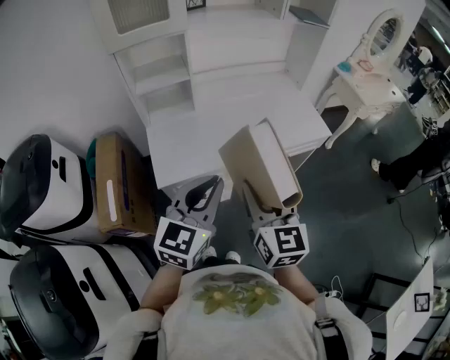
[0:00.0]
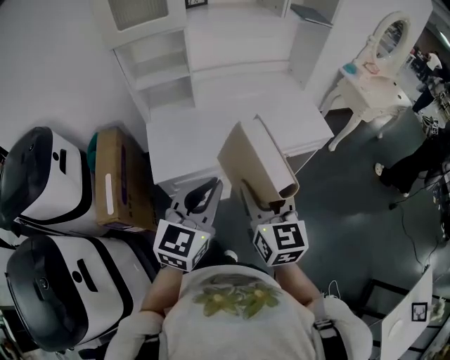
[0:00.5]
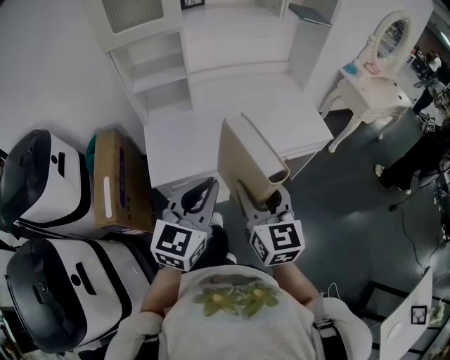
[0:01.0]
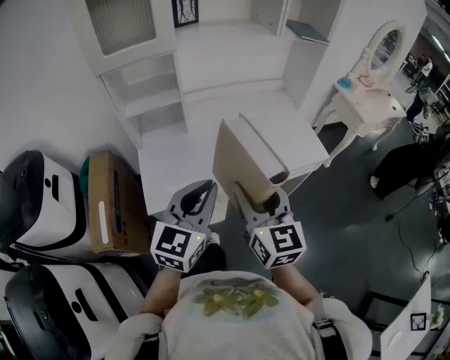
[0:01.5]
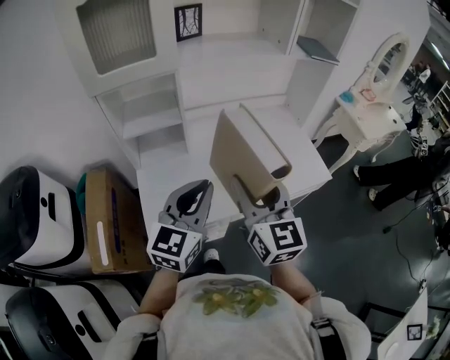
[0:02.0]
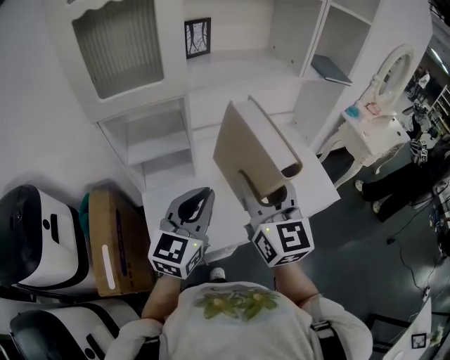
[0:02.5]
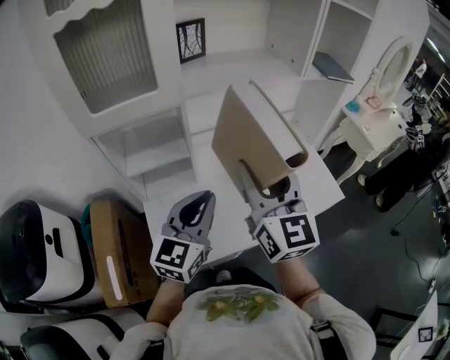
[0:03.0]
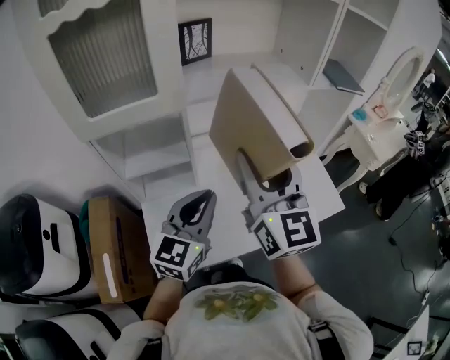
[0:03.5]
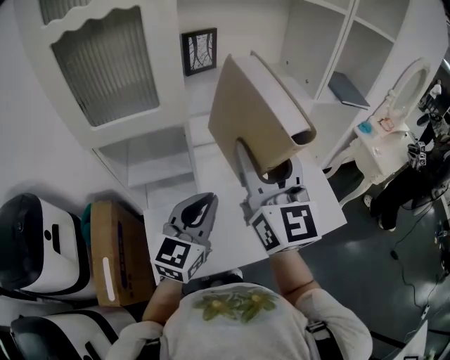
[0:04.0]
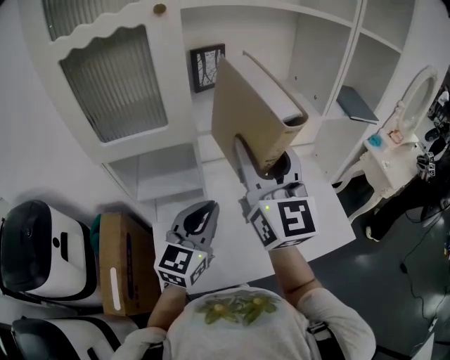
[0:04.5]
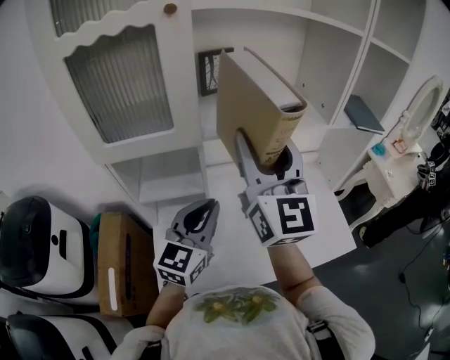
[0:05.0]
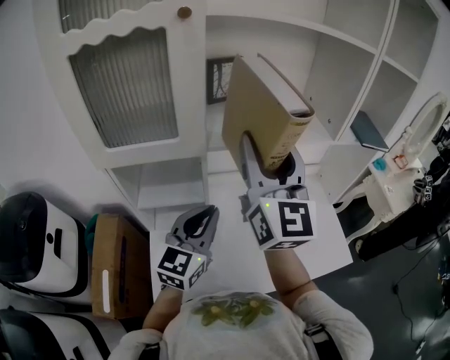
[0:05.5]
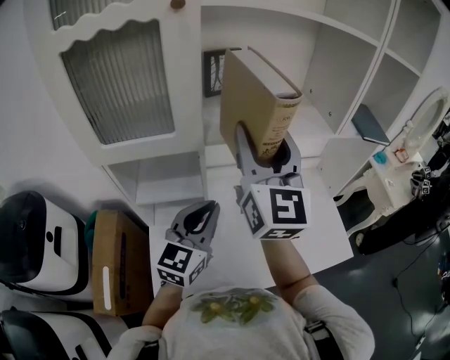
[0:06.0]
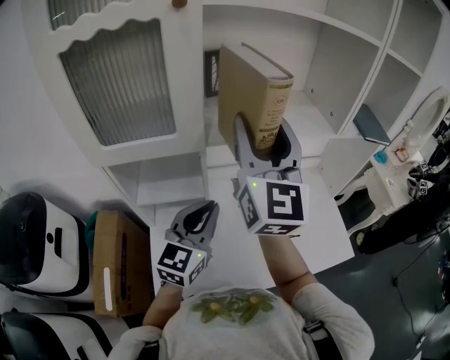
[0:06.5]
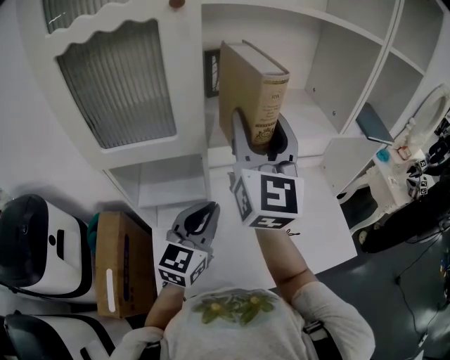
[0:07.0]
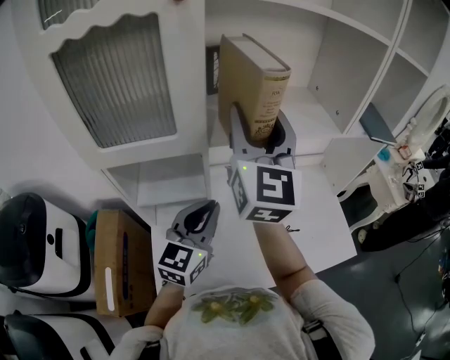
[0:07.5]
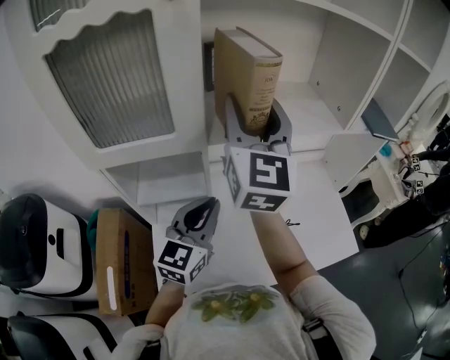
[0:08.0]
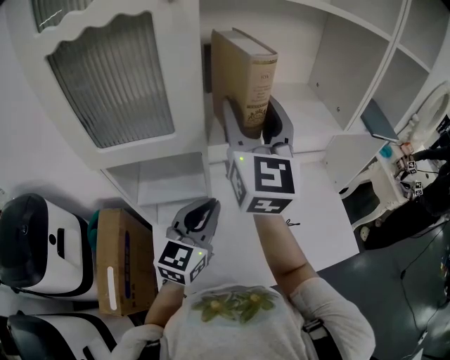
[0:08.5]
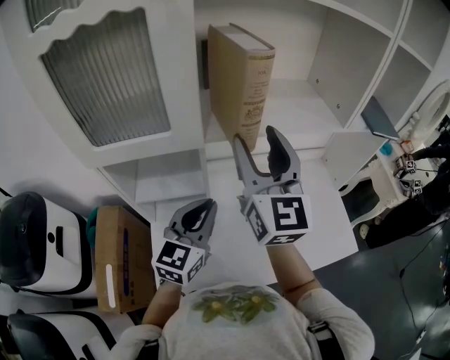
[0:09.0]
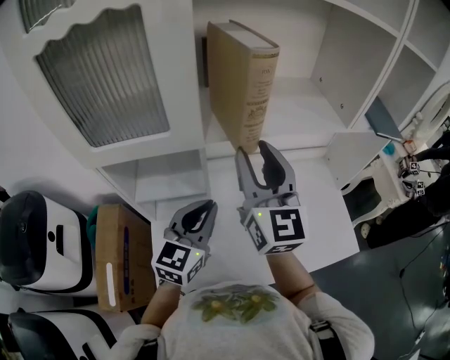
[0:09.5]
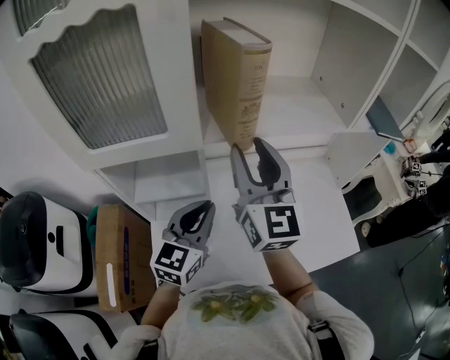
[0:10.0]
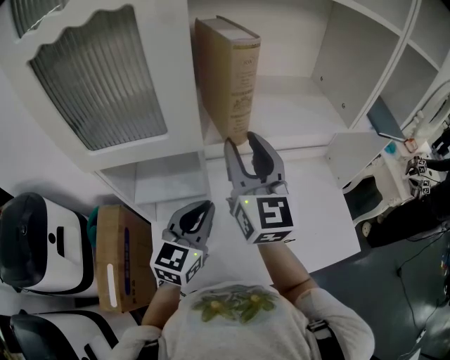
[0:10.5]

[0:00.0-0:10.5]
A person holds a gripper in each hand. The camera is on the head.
0:00.0 to 0:02.0: The grippers both shift forward by approximately 20 cm.
0:02.0 to 0:04.0: The left gripper heads forward, covering approximately 15 cm. The right gripper heads forward and upward, covering some 25 cm.
0:04.0 to 0:06.5: The two grippers go approximately 10 cm forward.
0:06.5 to 0:08.5: The right gripper shifts by some 5 cm.
0:08.5 to 0:10.5: The right gripper travels downward by about 10 cm.

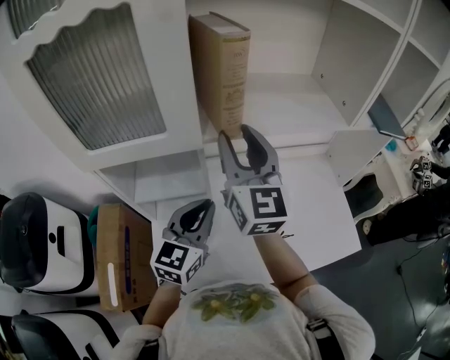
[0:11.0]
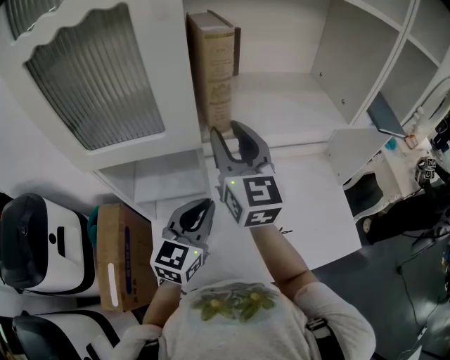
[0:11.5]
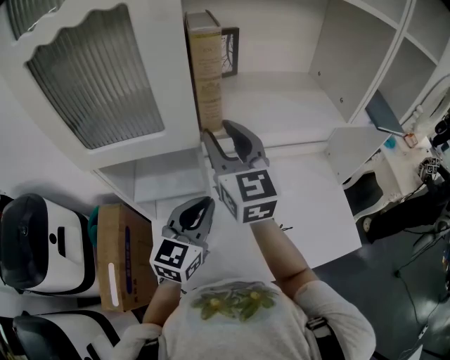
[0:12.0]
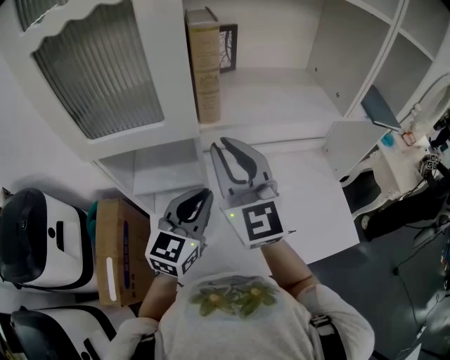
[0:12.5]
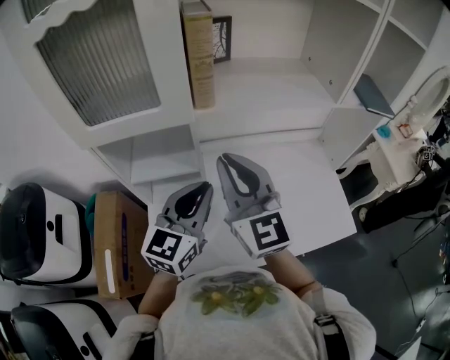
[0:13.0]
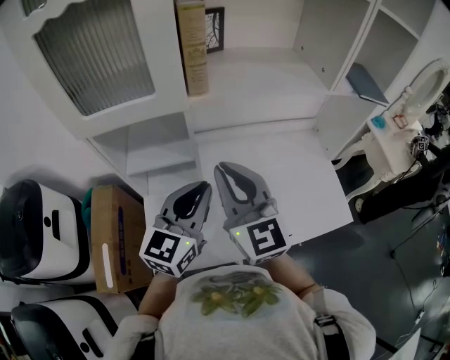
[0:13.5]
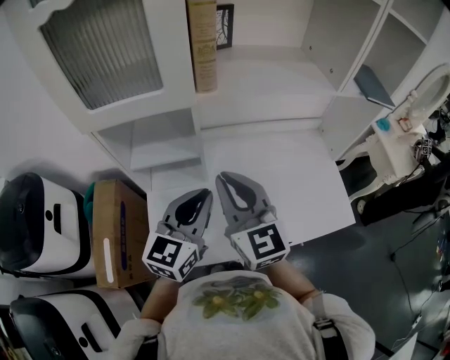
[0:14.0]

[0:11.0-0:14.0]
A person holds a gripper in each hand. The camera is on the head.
0:11.0 to 0:12.5: The right gripper heads backward, covering roughly 5 cm, and closes up.
0:12.5 to 0:14.0: The left gripper is displaced backward by about 10 cm. Meanwhile the right gripper moves backward and downward, some 15 cm.

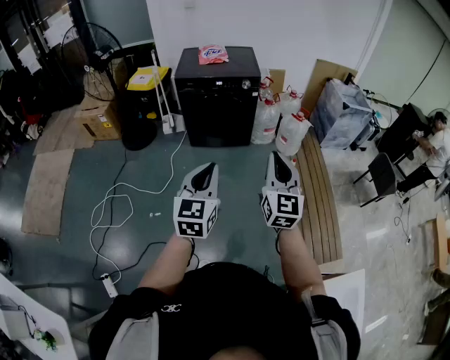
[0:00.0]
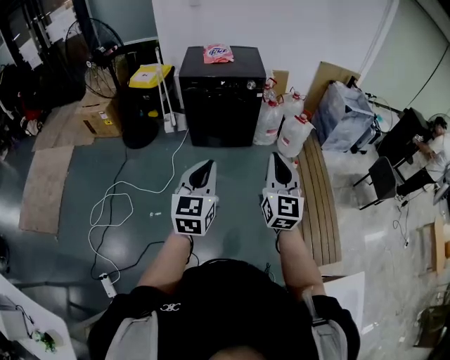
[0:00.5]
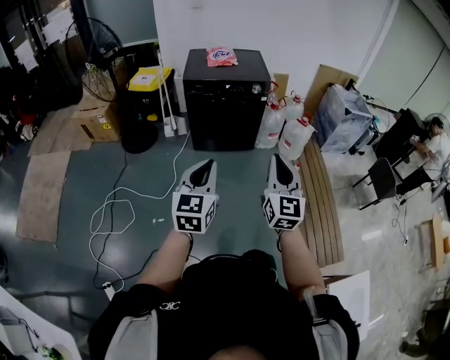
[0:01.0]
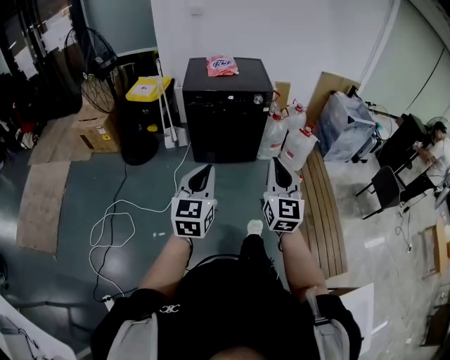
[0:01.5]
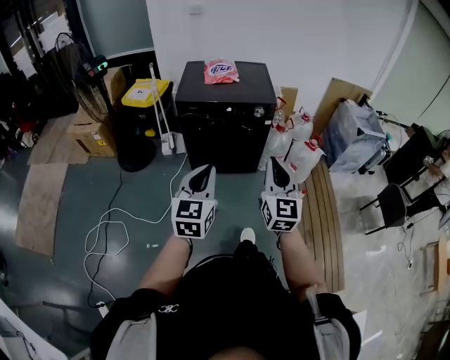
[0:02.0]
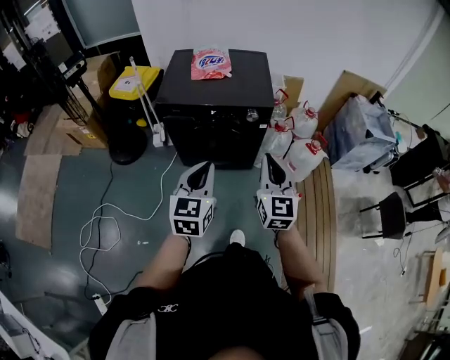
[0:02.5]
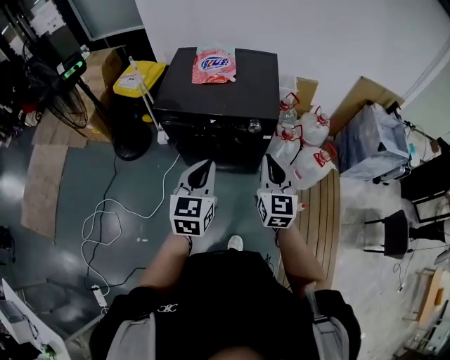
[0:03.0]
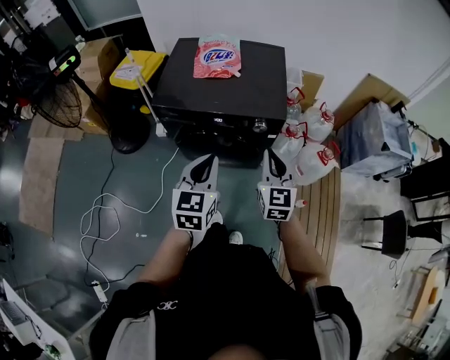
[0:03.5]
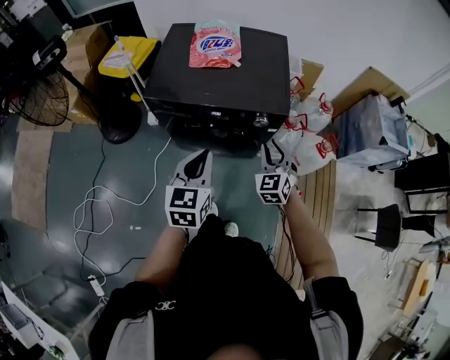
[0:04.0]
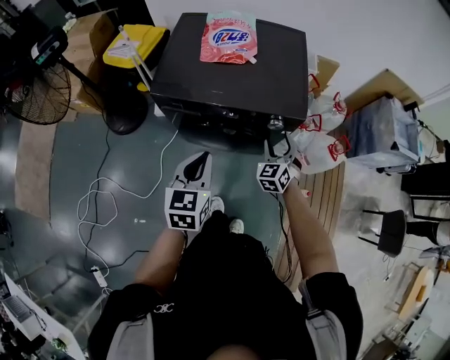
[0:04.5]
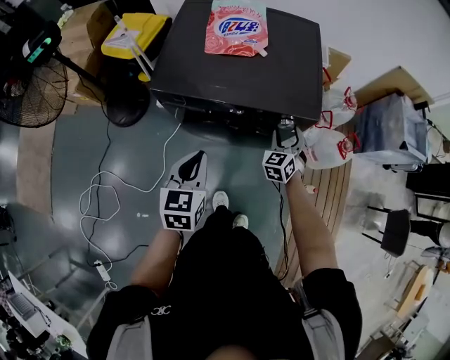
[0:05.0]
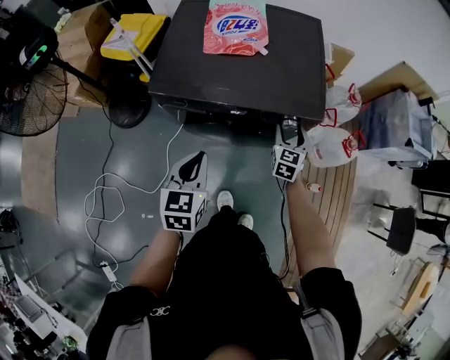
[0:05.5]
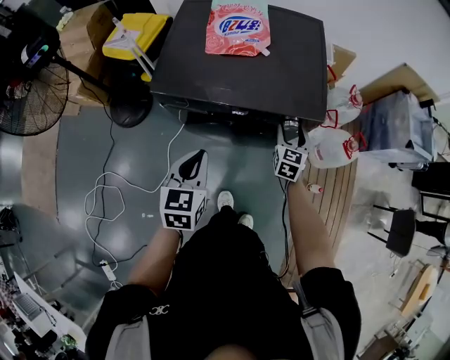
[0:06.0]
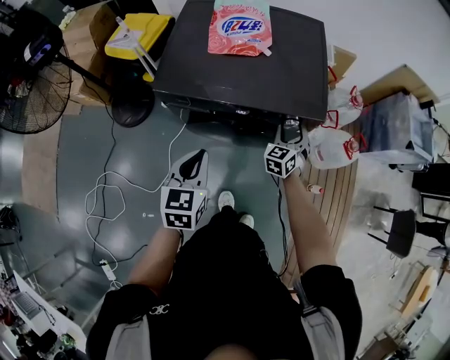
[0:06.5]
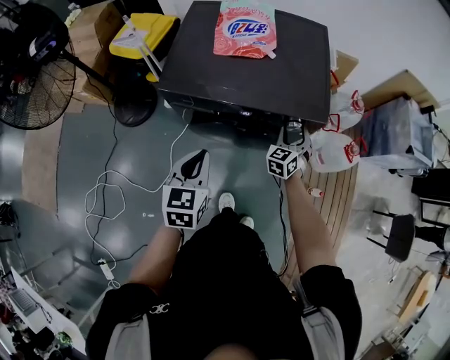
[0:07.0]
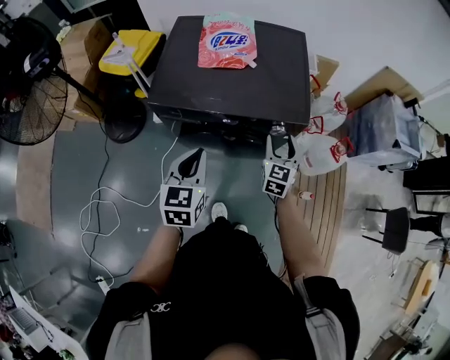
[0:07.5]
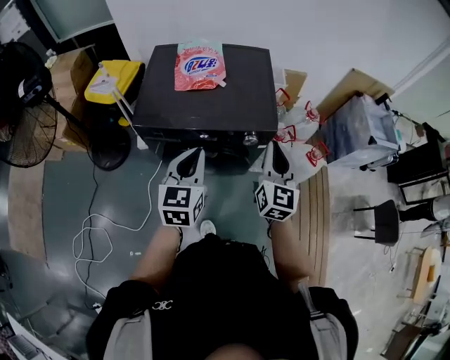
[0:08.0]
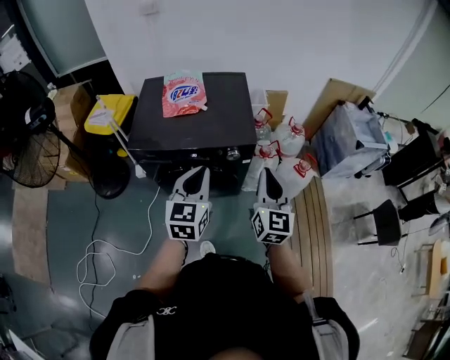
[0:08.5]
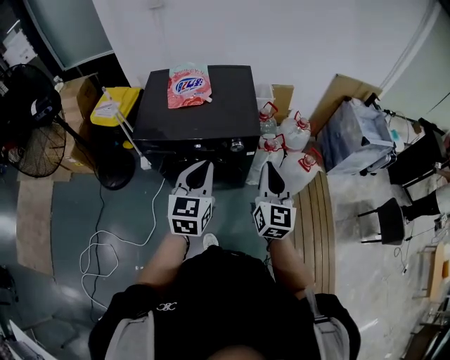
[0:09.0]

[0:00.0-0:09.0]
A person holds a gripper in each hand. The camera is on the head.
0:00.0 to 0:02.0: Both grippers travel together forward, roughly 25 cm.
0:02.0 to 0:04.5: The left gripper is displaced forward by roughly 40 cm, and rotates approximately 20 degrees. Meanwhile the right gripper is displaced forward and downward by roughly 60 cm, angles its fingers downward, by roughly 30 degrees, and opens up.
0:04.5 to 0:07.0: The right gripper goes some 10 cm forward and downward. The left gripper travels to the left by roughly 5 cm.
0:07.0 to 0:09.0: The right gripper shifts some 35 cm upward and backward, rotates approximately 40 degrees, and closes up, while the left gripper shifts about 20 cm to the right and upward, and changes its angle by some 20 degrees.

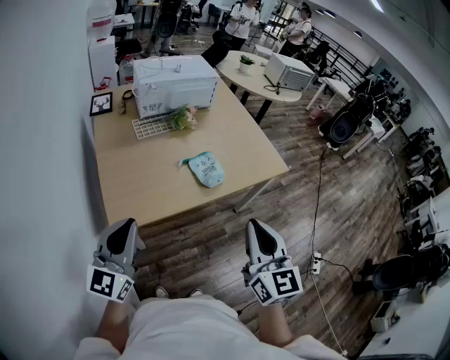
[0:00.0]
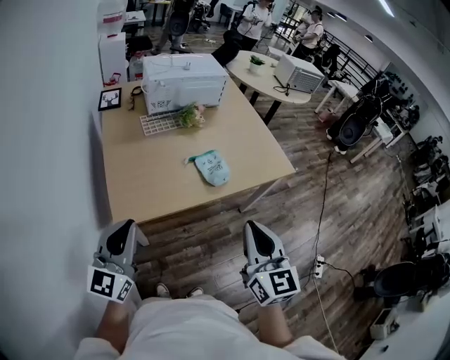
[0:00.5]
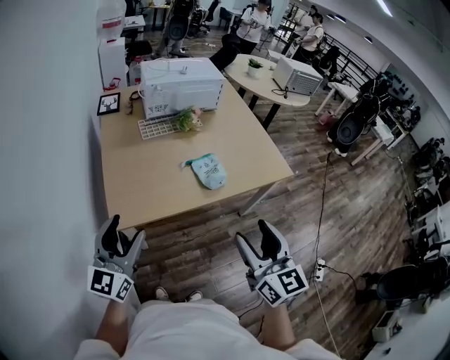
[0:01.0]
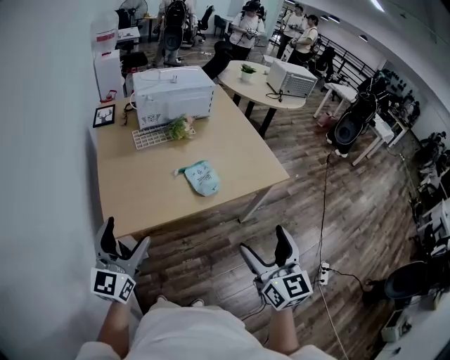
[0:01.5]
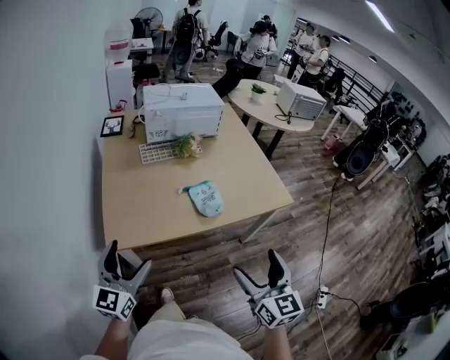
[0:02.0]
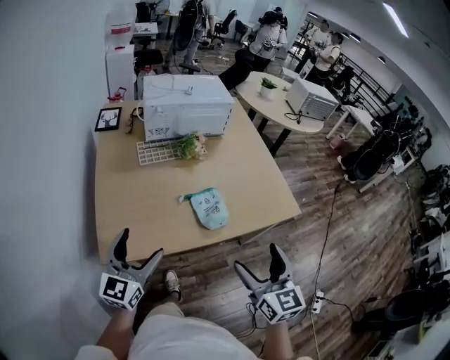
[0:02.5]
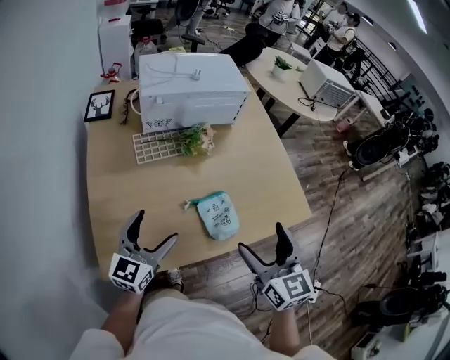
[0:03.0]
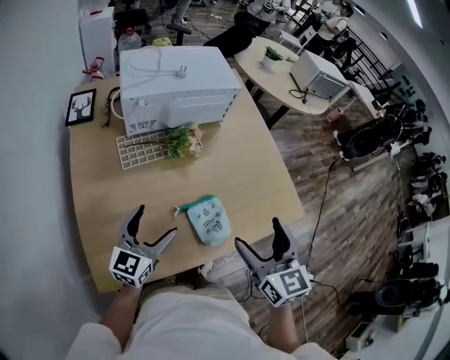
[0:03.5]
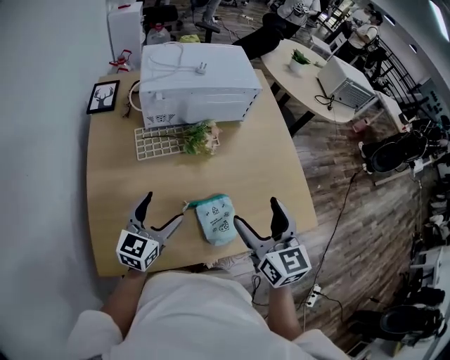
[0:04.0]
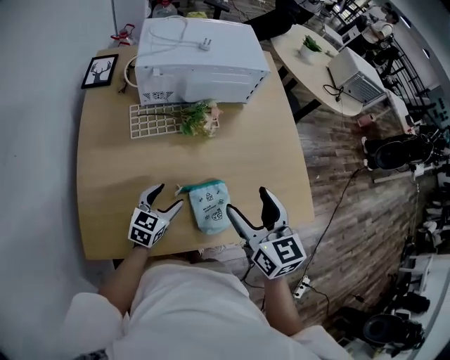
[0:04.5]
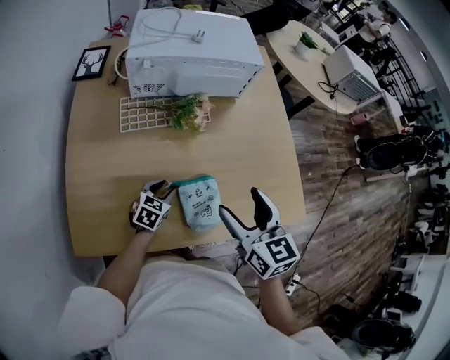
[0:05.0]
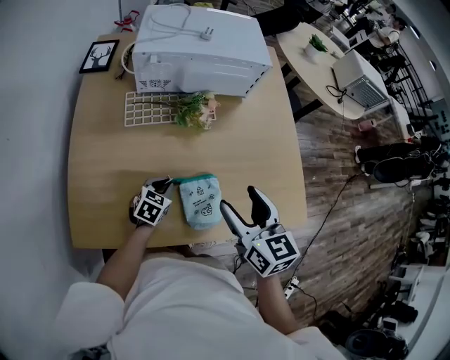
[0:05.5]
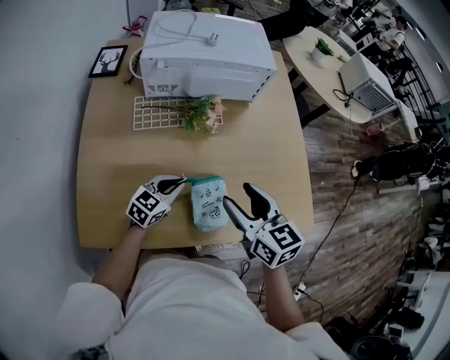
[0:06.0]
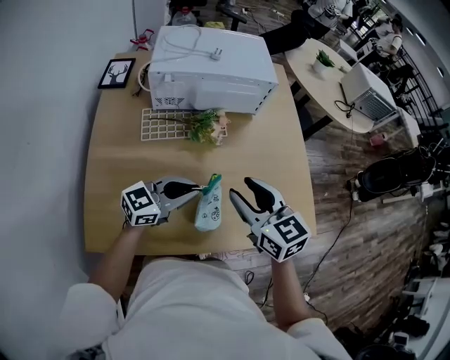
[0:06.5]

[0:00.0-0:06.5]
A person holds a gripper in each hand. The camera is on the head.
0:00.0 to 0:02.0: The right gripper travels to the right and downward by approximately 10 cm, and opens its fingers. Meanwhile the left gripper moves downward, approximately 5 cm, and opens.
0:02.0 to 0:04.5: The left gripper travels forward and downward by some 40 cm, and turns by about 30 degrees; the right gripper is displaced forward by about 40 cm.
0:04.5 to 0:06.5: The right gripper closes its fingers; the left gripper is displaced upward and to the right by about 15 cm, turns by about 30 degrees, and closes.
